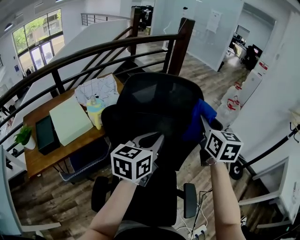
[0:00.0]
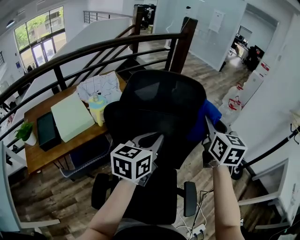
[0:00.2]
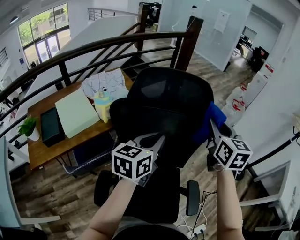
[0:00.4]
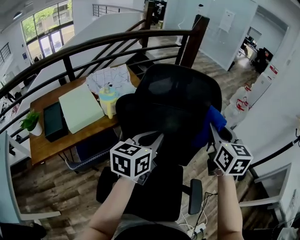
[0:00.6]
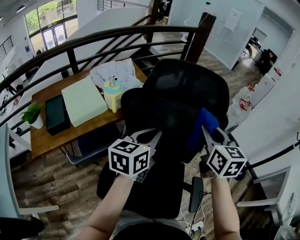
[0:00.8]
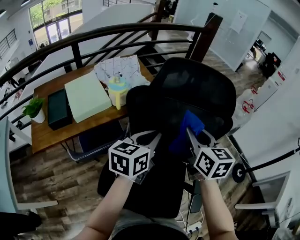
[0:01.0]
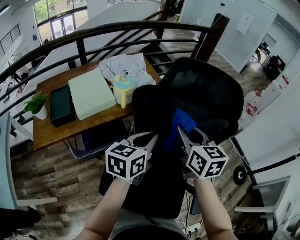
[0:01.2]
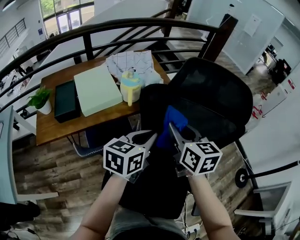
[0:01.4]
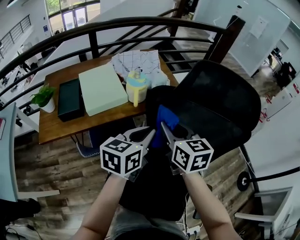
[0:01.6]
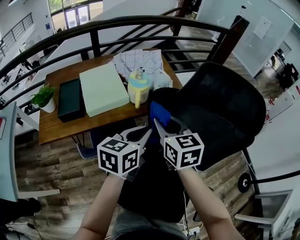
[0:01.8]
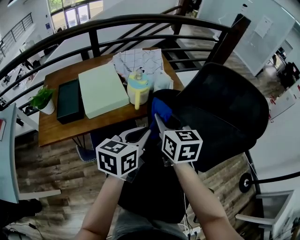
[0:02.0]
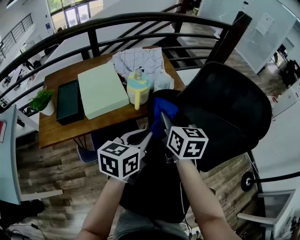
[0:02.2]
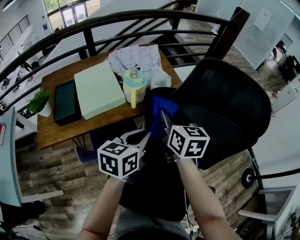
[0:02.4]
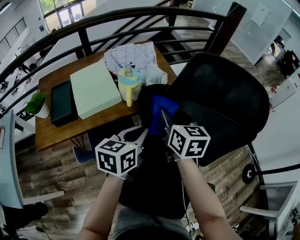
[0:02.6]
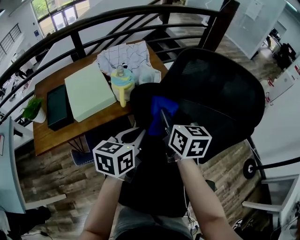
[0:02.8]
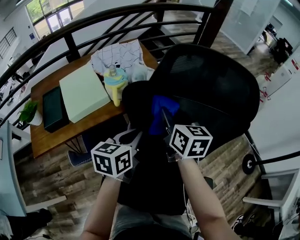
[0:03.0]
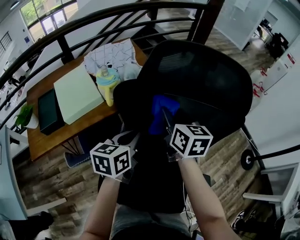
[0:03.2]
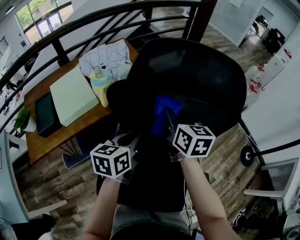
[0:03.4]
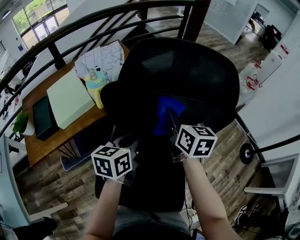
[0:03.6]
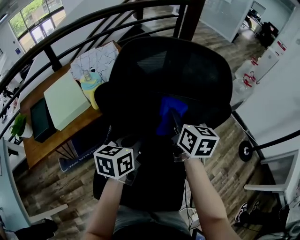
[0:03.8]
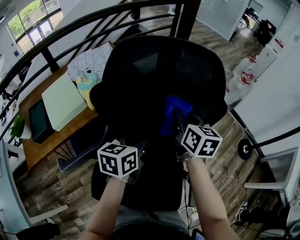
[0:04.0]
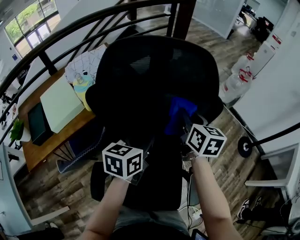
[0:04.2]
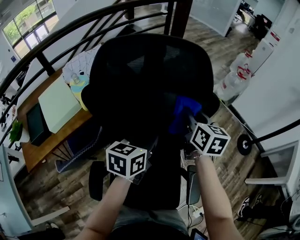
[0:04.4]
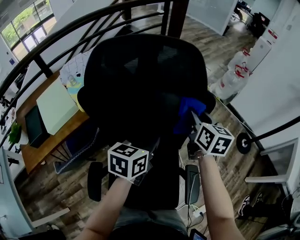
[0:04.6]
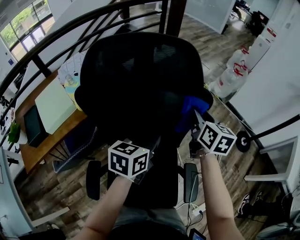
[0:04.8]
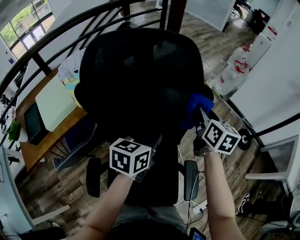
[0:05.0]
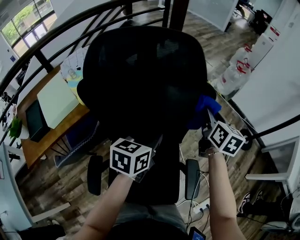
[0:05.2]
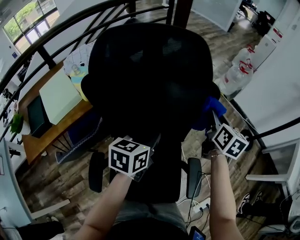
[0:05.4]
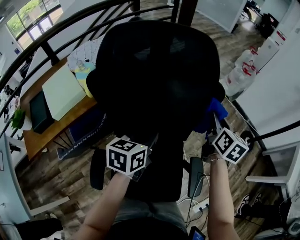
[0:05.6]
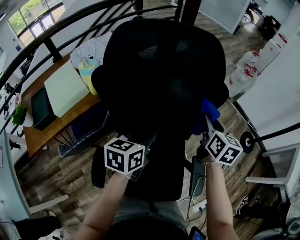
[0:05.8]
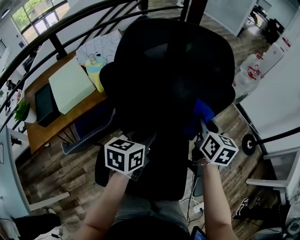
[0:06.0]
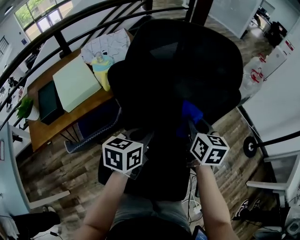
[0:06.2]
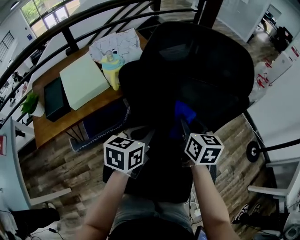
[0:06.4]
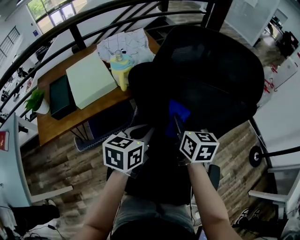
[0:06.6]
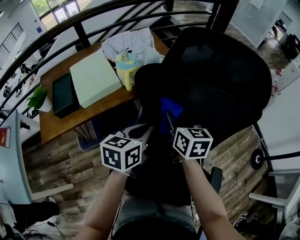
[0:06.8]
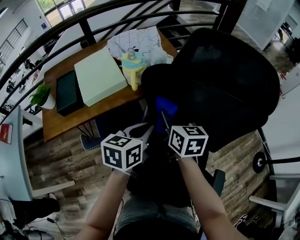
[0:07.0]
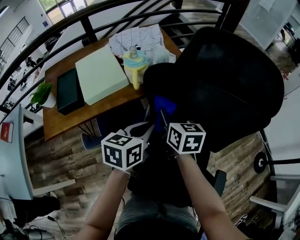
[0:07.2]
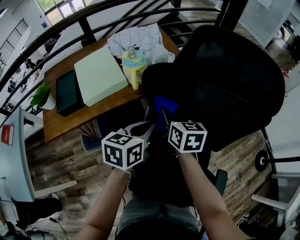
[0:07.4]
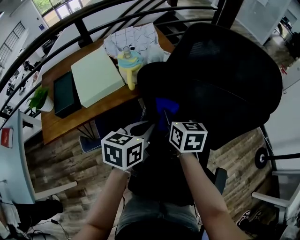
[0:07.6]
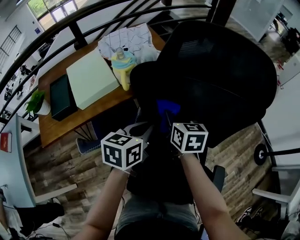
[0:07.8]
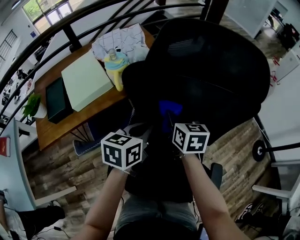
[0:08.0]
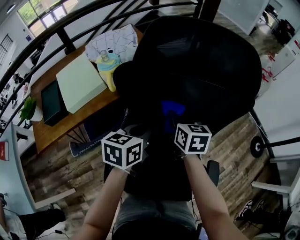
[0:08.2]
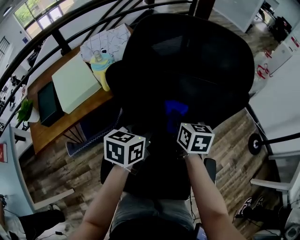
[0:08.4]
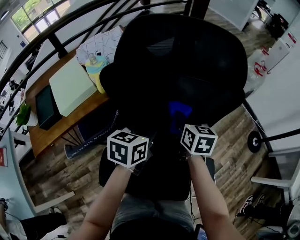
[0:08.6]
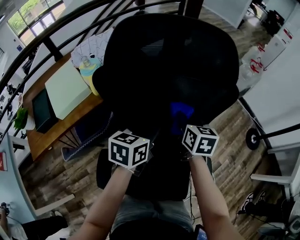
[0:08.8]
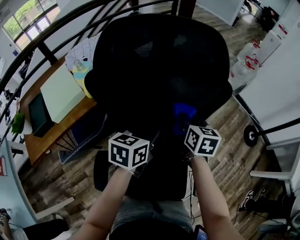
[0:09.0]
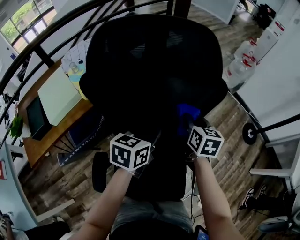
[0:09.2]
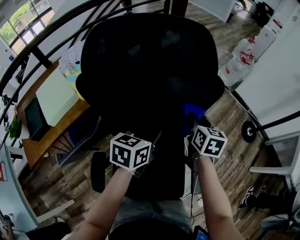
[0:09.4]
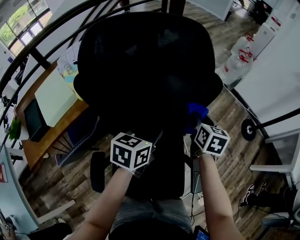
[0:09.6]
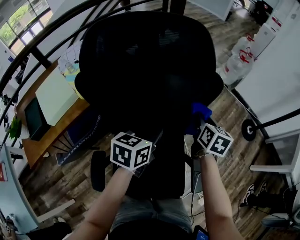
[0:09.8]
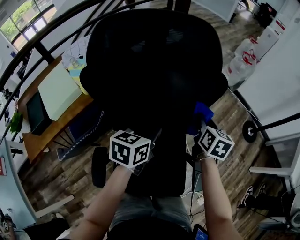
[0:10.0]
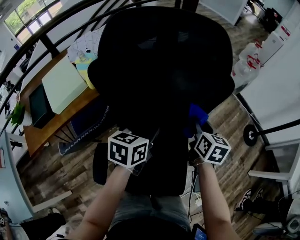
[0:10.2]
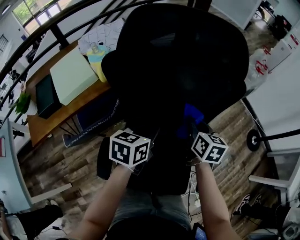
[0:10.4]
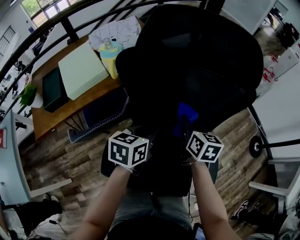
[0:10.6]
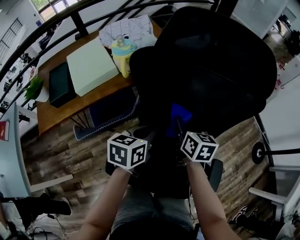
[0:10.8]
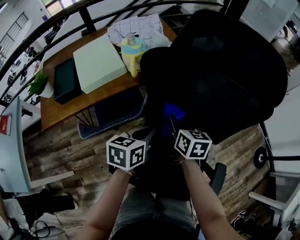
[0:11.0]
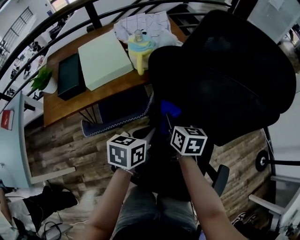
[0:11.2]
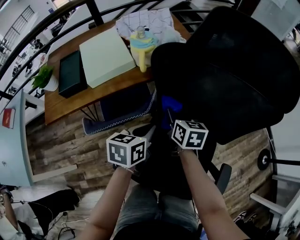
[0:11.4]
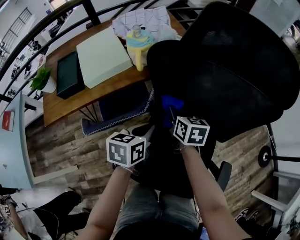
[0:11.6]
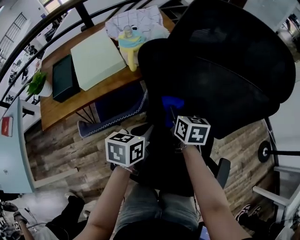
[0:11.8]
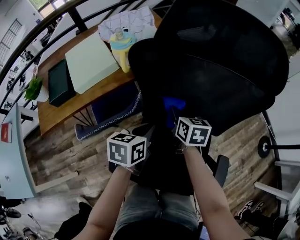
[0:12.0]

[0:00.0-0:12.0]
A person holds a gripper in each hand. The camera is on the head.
0:00.0 to 0:01.6: The left gripper shifts some 20 cm to the left and downward; the right gripper is displaced to the left by some 30 cm, and rotates roughly 30 degrees.
0:01.6 to 0:03.0: The right gripper travels forward and to the right by approximately 10 cm; the left gripper goes about 5 cm downward.
0:03.0 to 0:04.4: The grippers both shift to the right by roughly 20 cm.
0:04.4 to 0:06.0: Both grippers move backward, some 5 cm. The right gripper reaches about 10 cm to the right, then returns.
0:06.0 to 0:07.6: The right gripper goes about 25 cm to the left, and changes its angle by some 20 degrees. The left gripper shifts some 15 cm to the left.
0:07.6 to 0:09.0: The two grippers go some 20 cm to the right. The right gripper changes its angle by approximately 20 degrees.
0:09.0 to 0:10.4: The right gripper goes to the right and returns, approximately 10 cm each way; the left gripper moves some 5 cm.
0:10.4 to 0:12.0: The left gripper is displaced to the left by approximately 10 cm, while the right gripper moves to the left, some 20 cm.

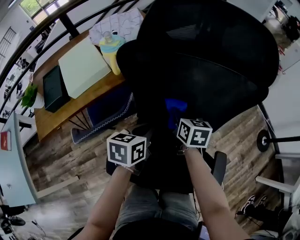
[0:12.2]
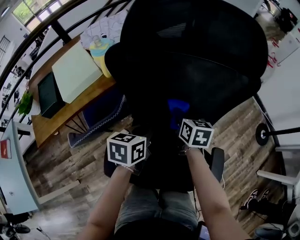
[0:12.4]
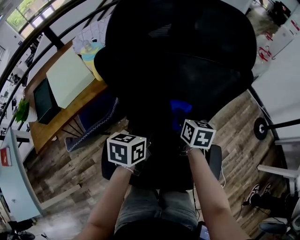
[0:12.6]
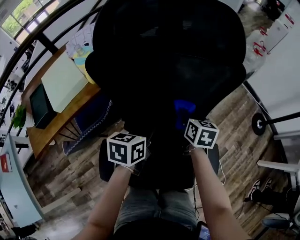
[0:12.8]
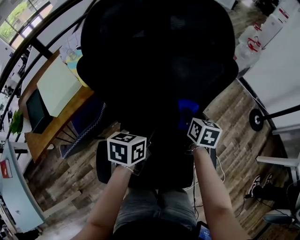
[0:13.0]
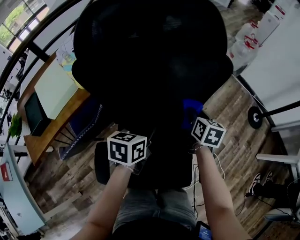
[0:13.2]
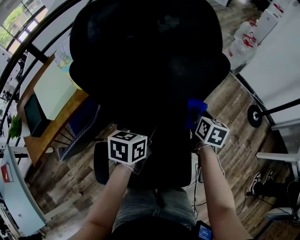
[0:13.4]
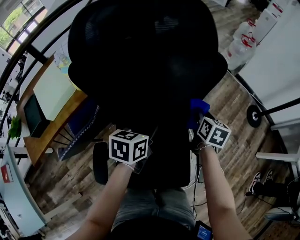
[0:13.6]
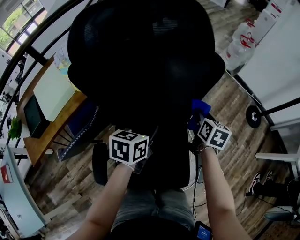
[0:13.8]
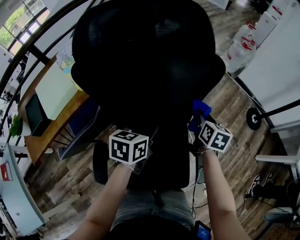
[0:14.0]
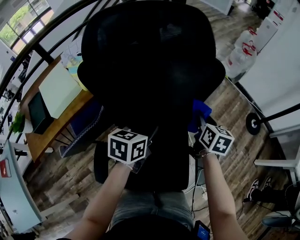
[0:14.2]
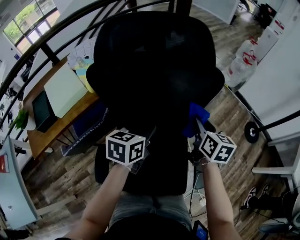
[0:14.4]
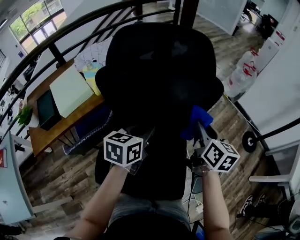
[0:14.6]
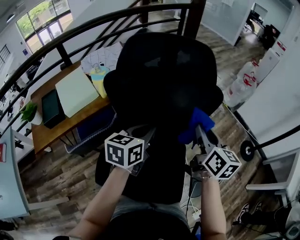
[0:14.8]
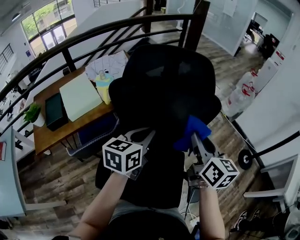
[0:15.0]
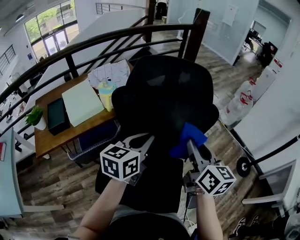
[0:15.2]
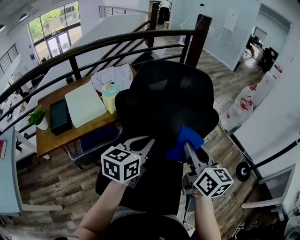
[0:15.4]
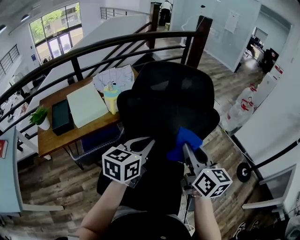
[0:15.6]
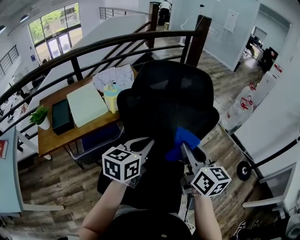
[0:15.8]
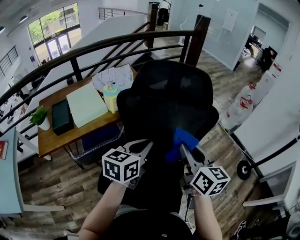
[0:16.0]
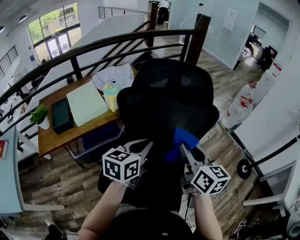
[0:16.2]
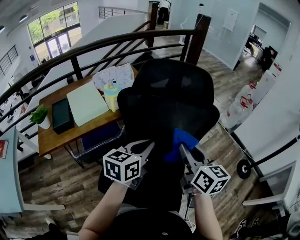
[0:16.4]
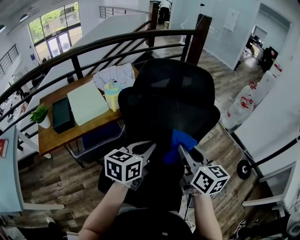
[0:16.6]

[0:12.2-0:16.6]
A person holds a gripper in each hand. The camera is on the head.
0:12.2 to 0:13.6: The left gripper travels to the right by some 15 cm, while the right gripper goes some 25 cm to the right, and rotates roughly 30 degrees.
0:13.6 to 0:15.2: The right gripper shifts some 30 cm upward and backward, and tips its fingers upward by approximately 30 degrees; the left gripper heads upward, covering roughly 20 cm, and rotates approximately 30 degrees.
0:15.2 to 0:16.6: The right gripper shifts by roughly 5 cm.

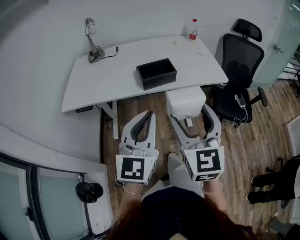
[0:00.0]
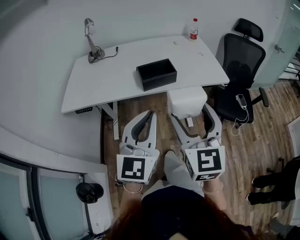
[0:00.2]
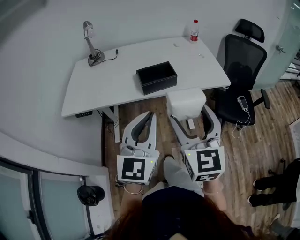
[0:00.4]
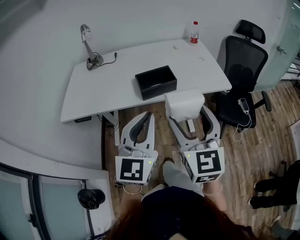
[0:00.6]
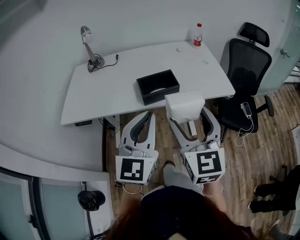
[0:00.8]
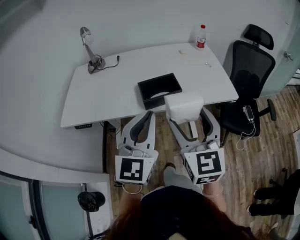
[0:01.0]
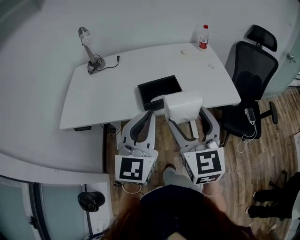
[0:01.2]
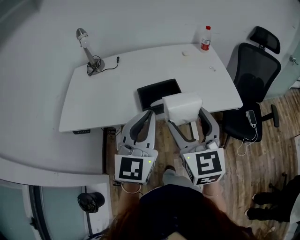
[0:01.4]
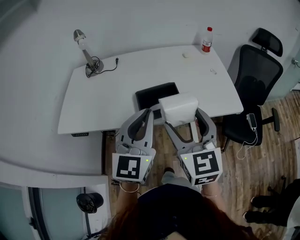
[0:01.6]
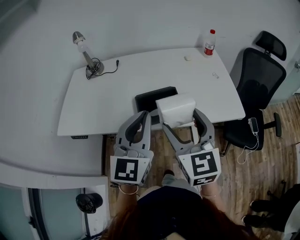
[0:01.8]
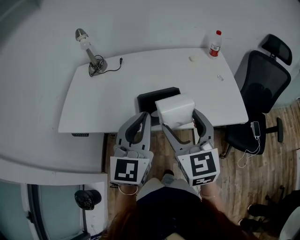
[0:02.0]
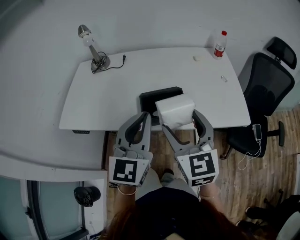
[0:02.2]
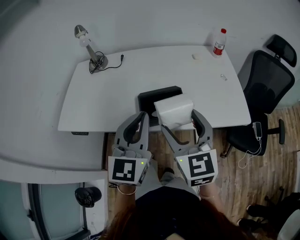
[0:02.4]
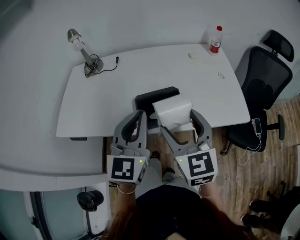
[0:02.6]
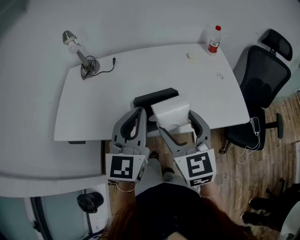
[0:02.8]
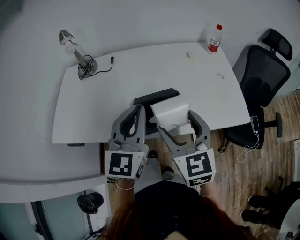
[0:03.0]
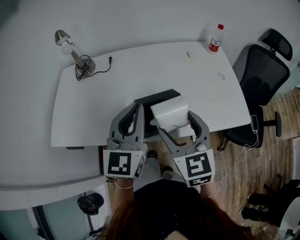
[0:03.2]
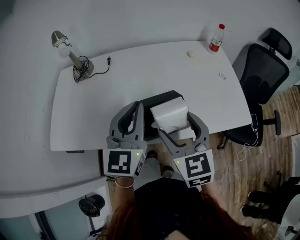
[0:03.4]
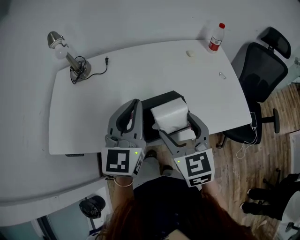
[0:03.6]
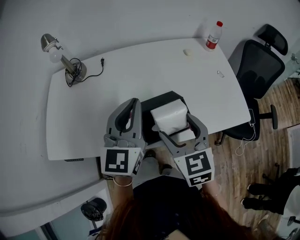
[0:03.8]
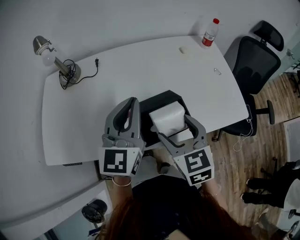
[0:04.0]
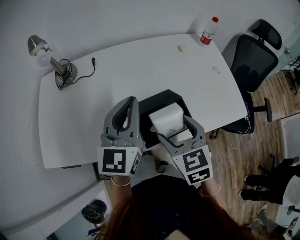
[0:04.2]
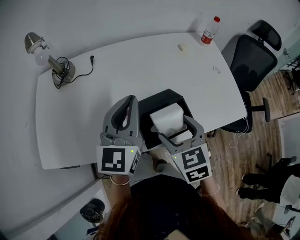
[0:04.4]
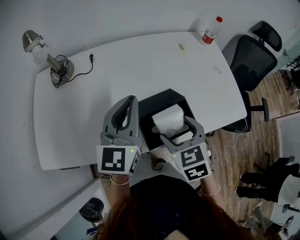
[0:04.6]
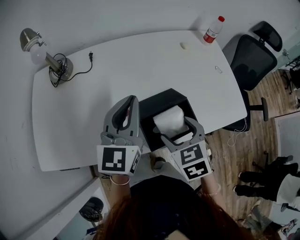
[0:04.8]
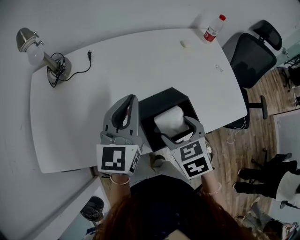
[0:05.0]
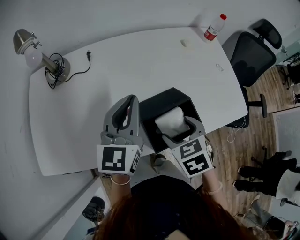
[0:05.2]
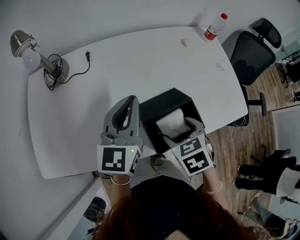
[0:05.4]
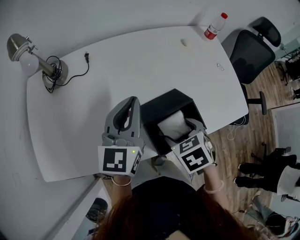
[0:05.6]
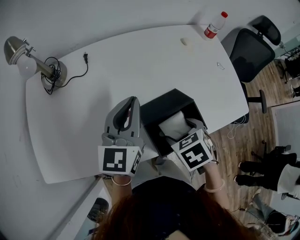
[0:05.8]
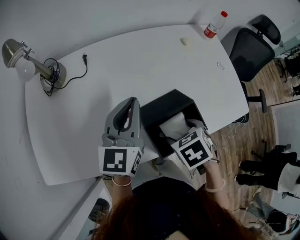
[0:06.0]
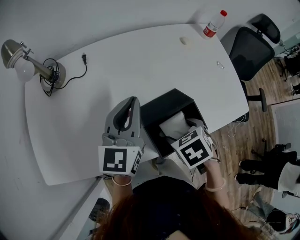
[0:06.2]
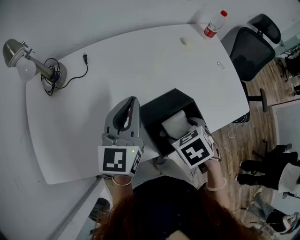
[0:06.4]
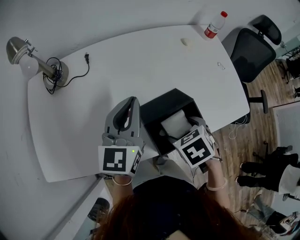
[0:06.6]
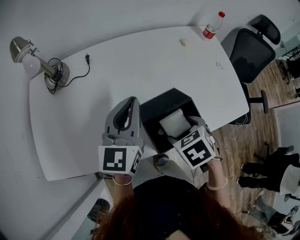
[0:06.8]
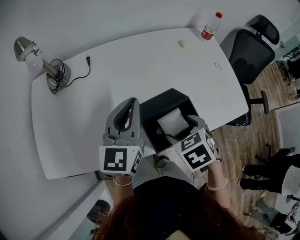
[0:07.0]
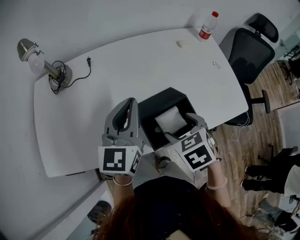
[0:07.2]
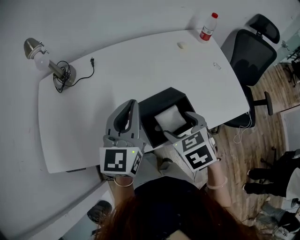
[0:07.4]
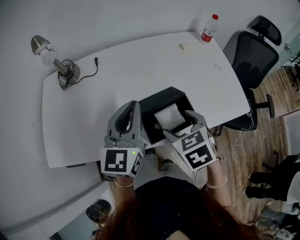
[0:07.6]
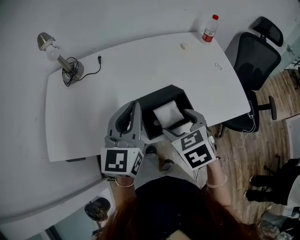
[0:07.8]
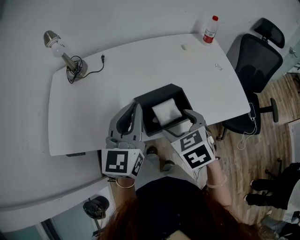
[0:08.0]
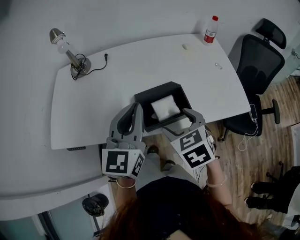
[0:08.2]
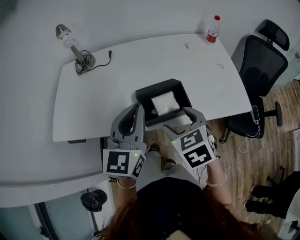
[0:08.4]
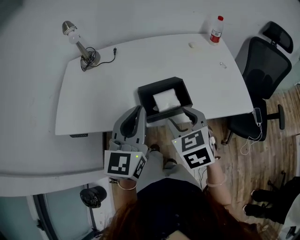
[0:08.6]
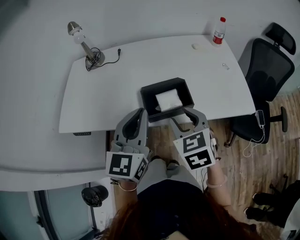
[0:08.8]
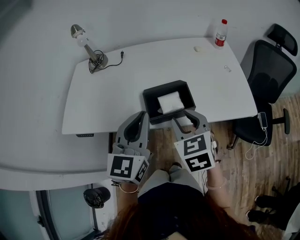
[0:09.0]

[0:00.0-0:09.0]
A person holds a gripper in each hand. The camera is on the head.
0:00.0 to 0:01.6: The two grippers go approximately 20 cm forward.
0:01.6 to 0:03.0: The grippers both shift forward by about 10 cm.
0:03.0 to 0:04.4: The left gripper travels forward by roughly 10 cm; the right gripper goes about 10 cm downward and forward, and changes its angle by some 20 degrees.
0:04.4 to 0:06.0: The two grippers go approximately 5 cm downward. The right gripper points its fingers approximately 30 degrees further downward.
0:06.0 to 0:07.6: The left gripper goes some 5 cm backward, while the right gripper heads upward, covering approximately 5 cm, and swivels approximately 20 degrees.
0:07.6 to 0:09.0: The left gripper goes some 15 cm backward. Meanwhile the right gripper goes approximately 10 cm backward and upward, and closes.
